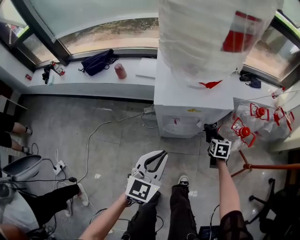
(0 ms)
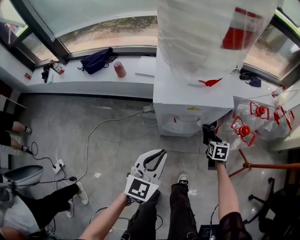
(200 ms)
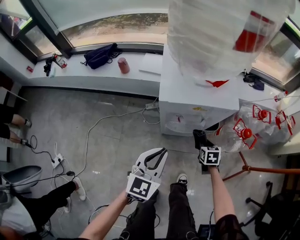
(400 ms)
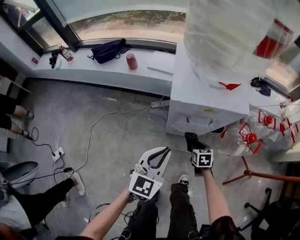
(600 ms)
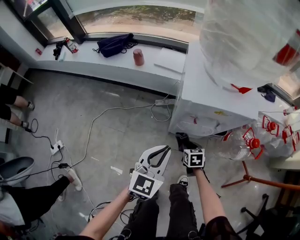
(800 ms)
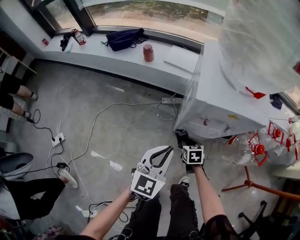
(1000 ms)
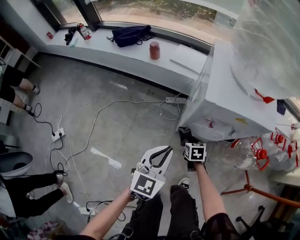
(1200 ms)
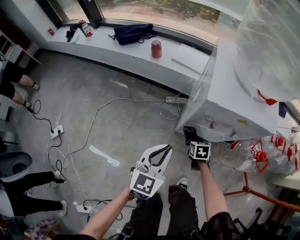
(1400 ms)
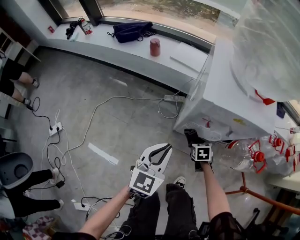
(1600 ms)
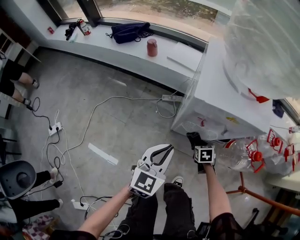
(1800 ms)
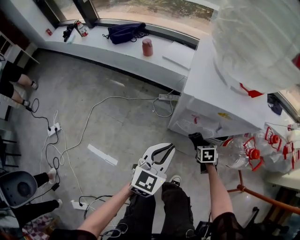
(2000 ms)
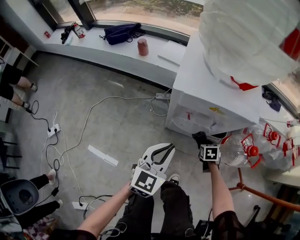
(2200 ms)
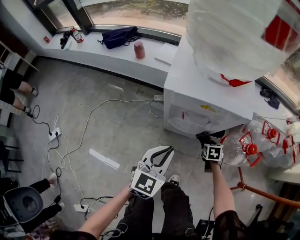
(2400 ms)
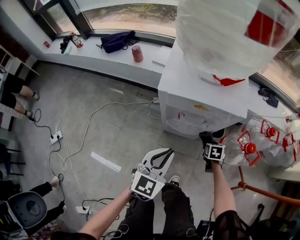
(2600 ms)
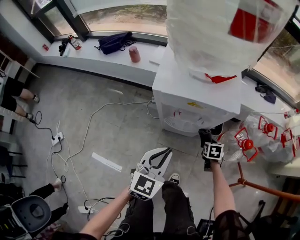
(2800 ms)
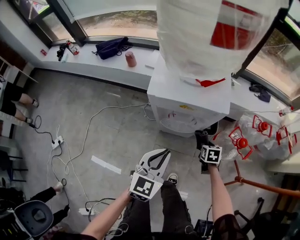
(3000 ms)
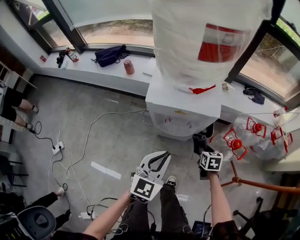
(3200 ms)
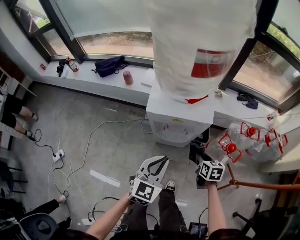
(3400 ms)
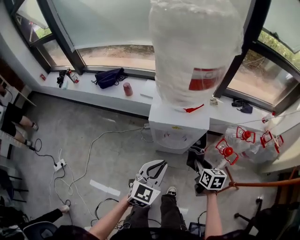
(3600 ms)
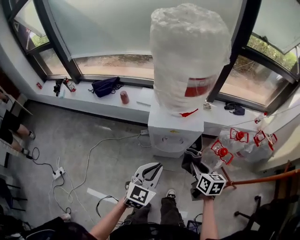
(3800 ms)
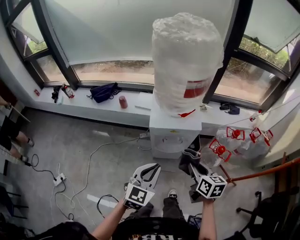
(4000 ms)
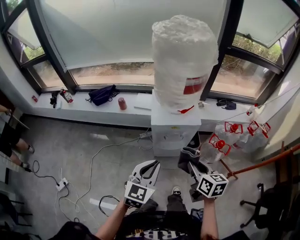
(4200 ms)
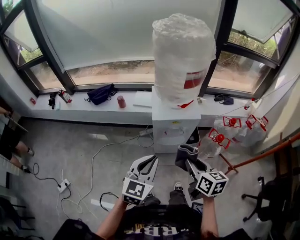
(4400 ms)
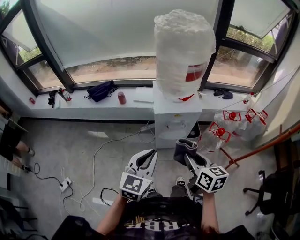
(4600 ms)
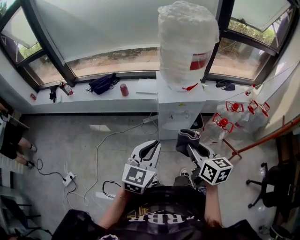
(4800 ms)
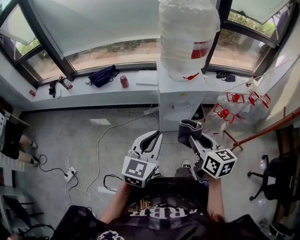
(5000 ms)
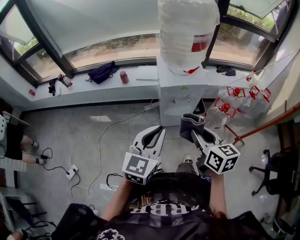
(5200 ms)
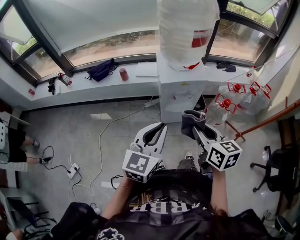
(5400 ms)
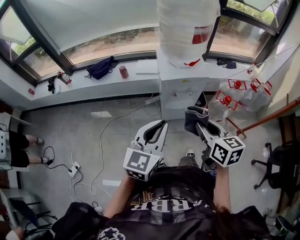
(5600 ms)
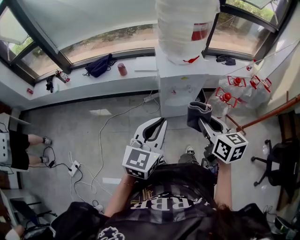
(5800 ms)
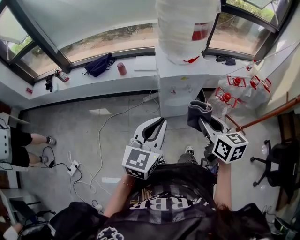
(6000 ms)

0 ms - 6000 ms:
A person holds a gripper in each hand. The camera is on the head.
0 ms - 1600 ms: The left gripper moves downward and to the left, about 10 cm, while the right gripper moves to the left and downward, some 25 cm, and rotates about 30 degrees.
1600 ms - 3000 ms: Both grippers travel together to the right and upward, roughly 20 cm.
3000 ms - 4400 ms: The left gripper shifts about 30 cm upward, to the left and backward; the right gripper moves upward and backward, about 50 cm, and points its fingers about 30 degrees further upward.
4400 ms - 6000 ms: The right gripper ends up some 5 cm from where it was. Meanwhile the left gripper ends up some 5 cm from where it was.

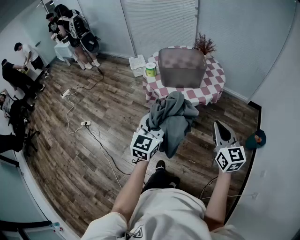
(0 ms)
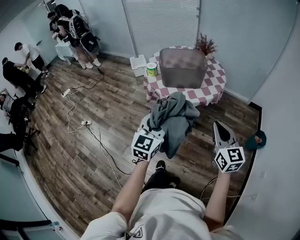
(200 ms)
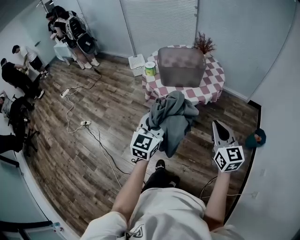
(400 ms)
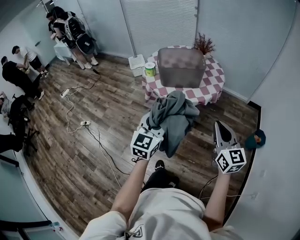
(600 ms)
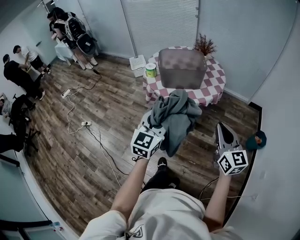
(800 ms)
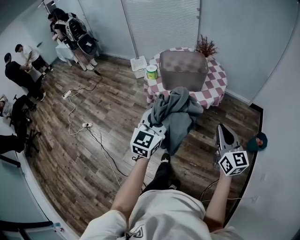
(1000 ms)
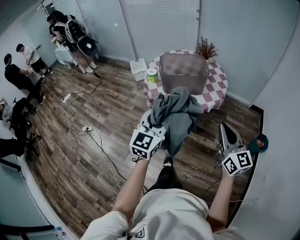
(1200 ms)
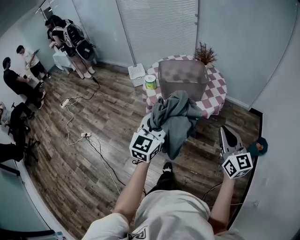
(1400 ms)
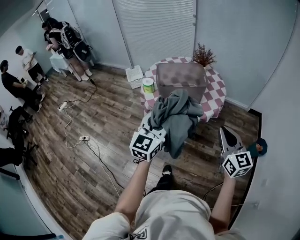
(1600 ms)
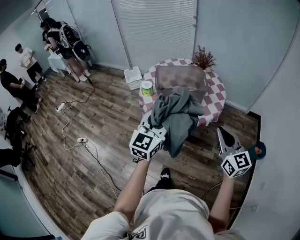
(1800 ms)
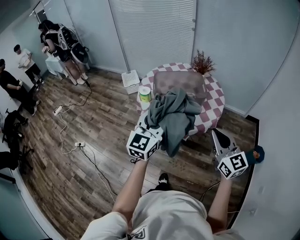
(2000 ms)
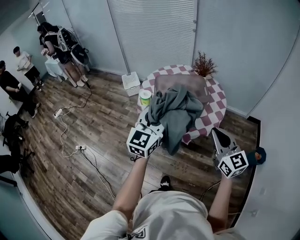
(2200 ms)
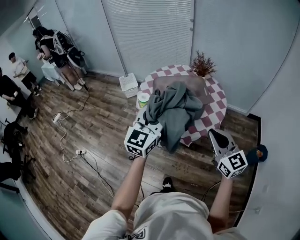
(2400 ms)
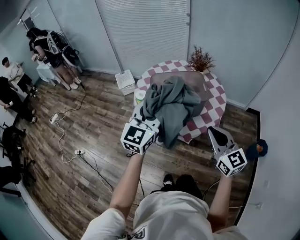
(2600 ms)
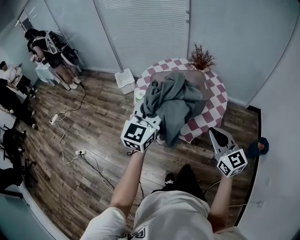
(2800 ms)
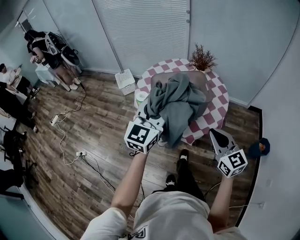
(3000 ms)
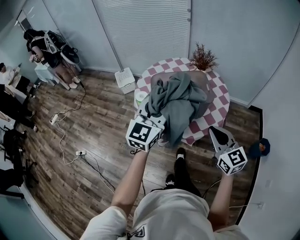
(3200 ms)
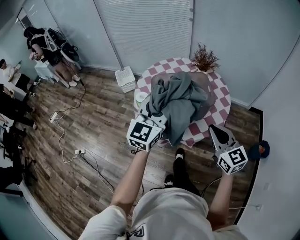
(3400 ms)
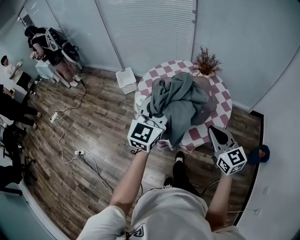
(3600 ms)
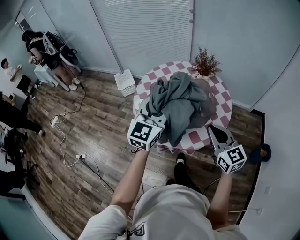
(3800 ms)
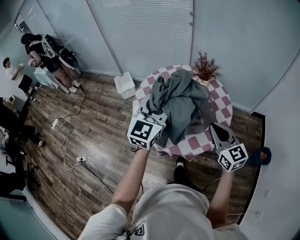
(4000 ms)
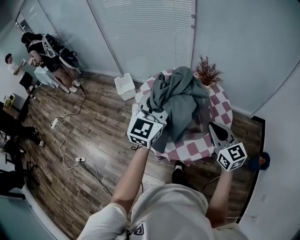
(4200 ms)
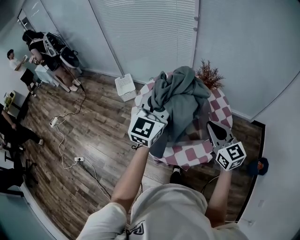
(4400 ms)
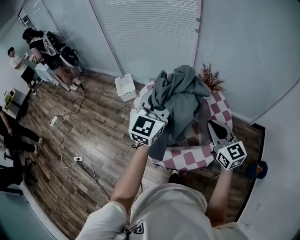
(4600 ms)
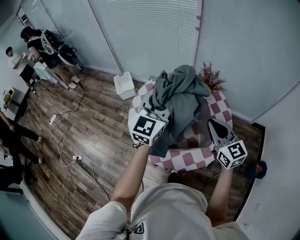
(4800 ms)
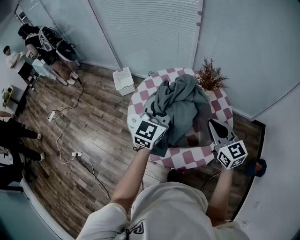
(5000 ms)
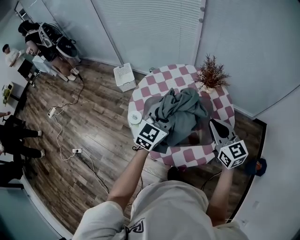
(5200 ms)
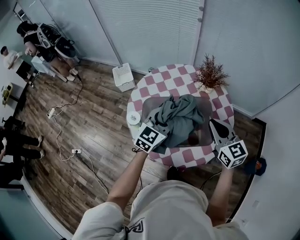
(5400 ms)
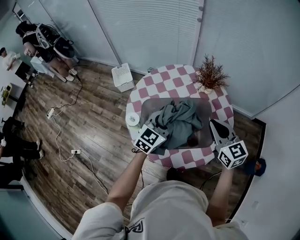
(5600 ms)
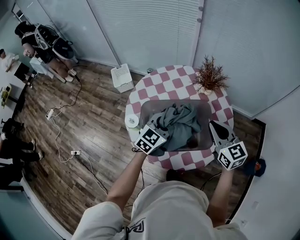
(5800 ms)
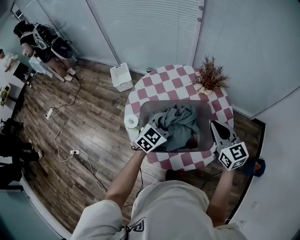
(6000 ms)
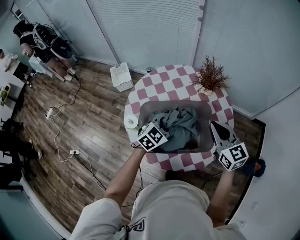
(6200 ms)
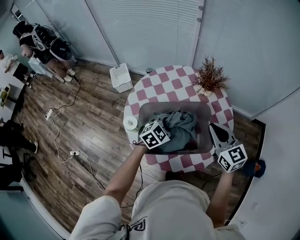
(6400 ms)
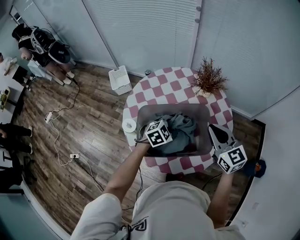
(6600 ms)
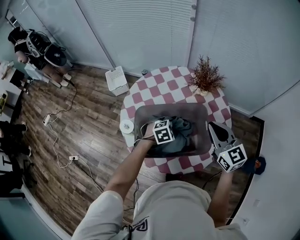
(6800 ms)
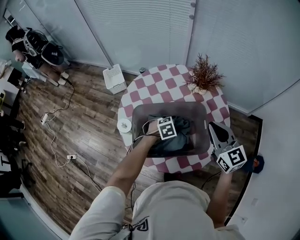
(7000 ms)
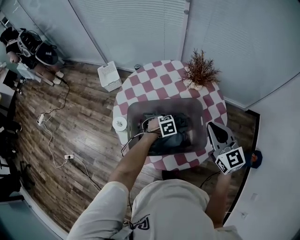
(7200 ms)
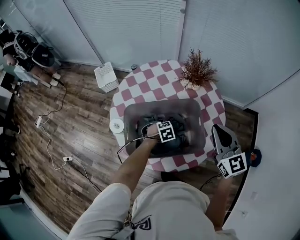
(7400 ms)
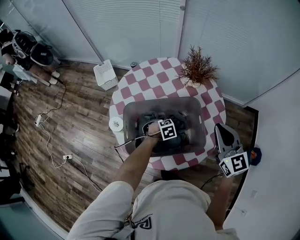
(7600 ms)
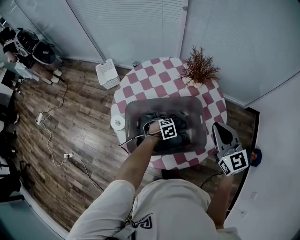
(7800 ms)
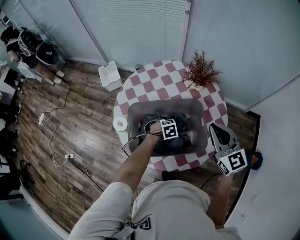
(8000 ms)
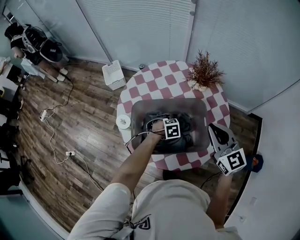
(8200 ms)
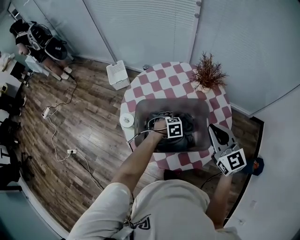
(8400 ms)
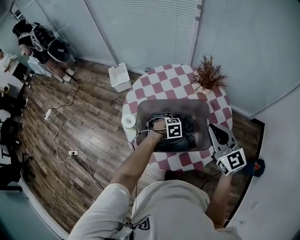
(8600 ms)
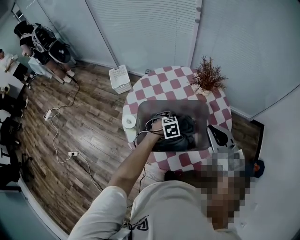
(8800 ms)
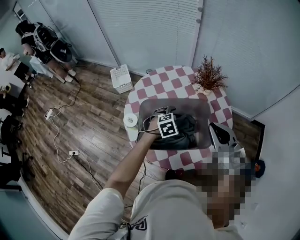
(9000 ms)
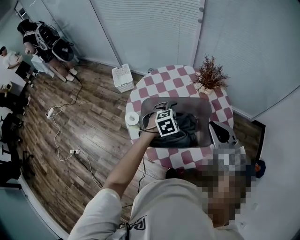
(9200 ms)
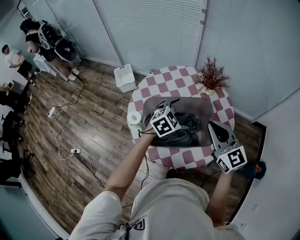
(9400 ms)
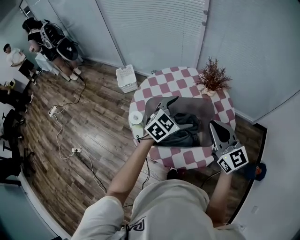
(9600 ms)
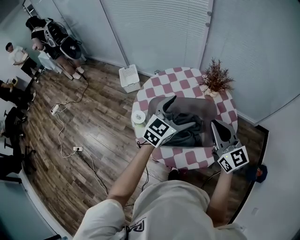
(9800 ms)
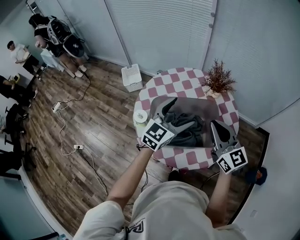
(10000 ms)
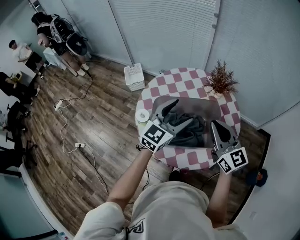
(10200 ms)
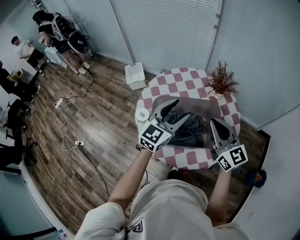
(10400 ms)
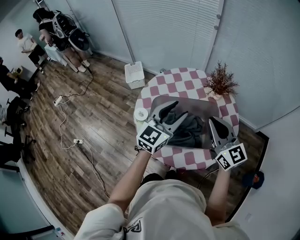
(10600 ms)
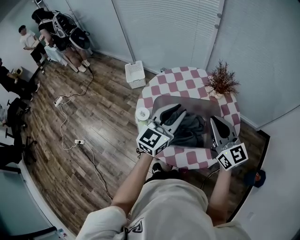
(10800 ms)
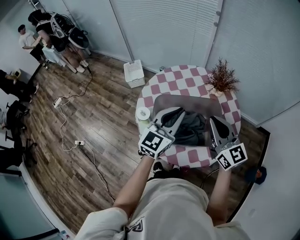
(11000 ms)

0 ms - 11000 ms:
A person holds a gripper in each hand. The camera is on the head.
0 ms - 1600 ms: The right gripper heads forward, covering approximately 10 cm, while the left gripper goes roughly 15 cm forward and upward.
1600 ms - 3200 ms: Both grippers travel together forward, approximately 20 cm.
3200 ms - 4800 ms: The two grippers go roughly 25 cm forward.
4800 ms - 6200 ms: The left gripper moves downward, approximately 25 cm, and tips its fingers downward by roughly 30 degrees. The right gripper is displaced downward by about 5 cm.
6200 ms - 7800 ms: The left gripper is displaced downward by roughly 25 cm, and tilts its fingers approximately 40 degrees downward.
7800 ms - 9400 ms: The left gripper moves upward, some 25 cm, swivels roughly 30 degrees, and opens its fingers, while the right gripper moves backward and to the left, roughly 10 cm.
9400 ms - 11000 ms: The left gripper shifts about 15 cm upward and to the left, points its fingers about 40 degrees further upward, and closes up.

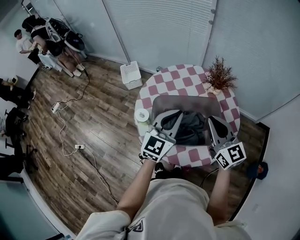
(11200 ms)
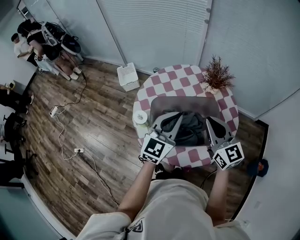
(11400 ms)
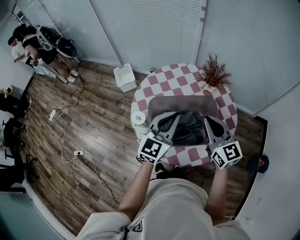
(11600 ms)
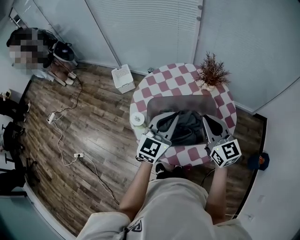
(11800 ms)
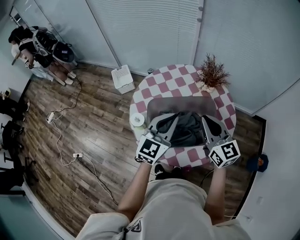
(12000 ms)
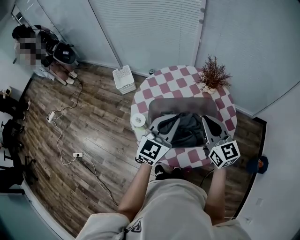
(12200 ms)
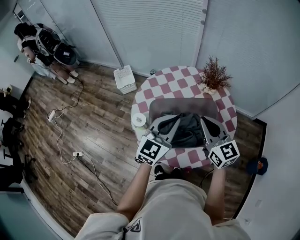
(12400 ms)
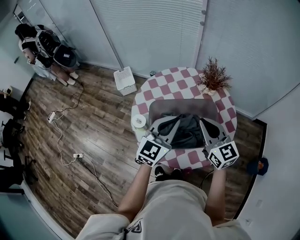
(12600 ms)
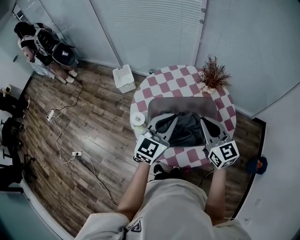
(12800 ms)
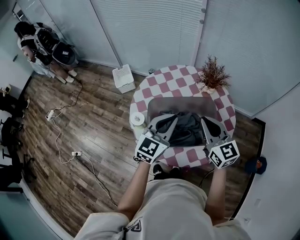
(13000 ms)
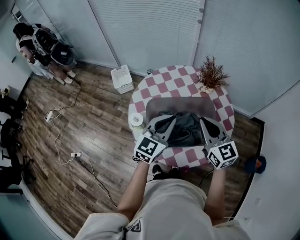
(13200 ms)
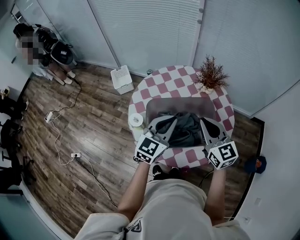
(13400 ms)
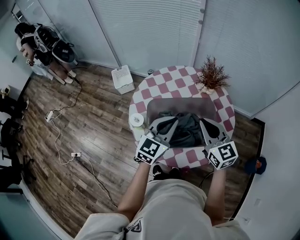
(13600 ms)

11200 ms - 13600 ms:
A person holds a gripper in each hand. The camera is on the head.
11200 ms - 13600 ms: The grippers make only small movements.

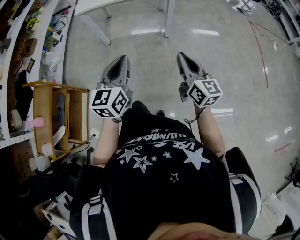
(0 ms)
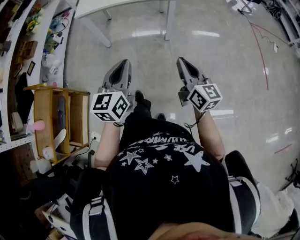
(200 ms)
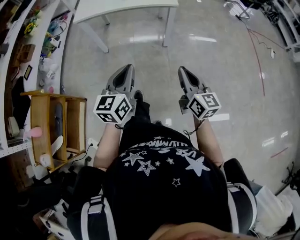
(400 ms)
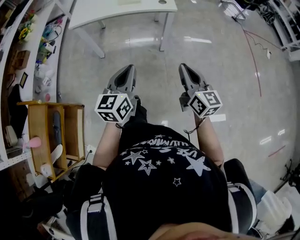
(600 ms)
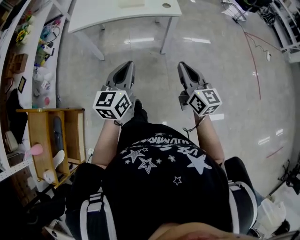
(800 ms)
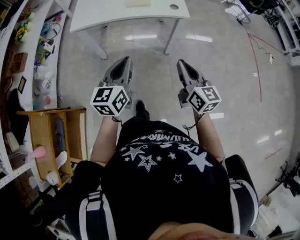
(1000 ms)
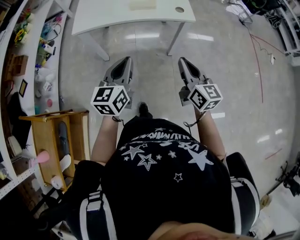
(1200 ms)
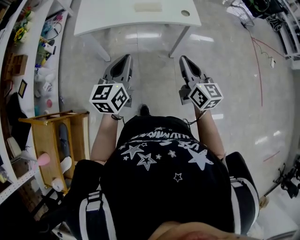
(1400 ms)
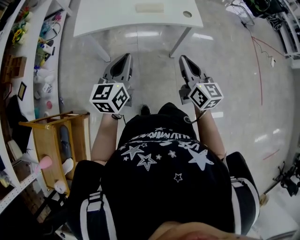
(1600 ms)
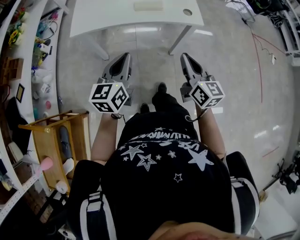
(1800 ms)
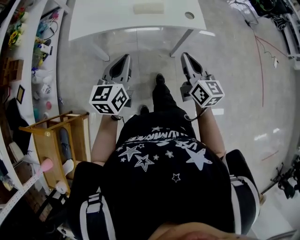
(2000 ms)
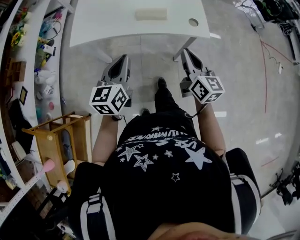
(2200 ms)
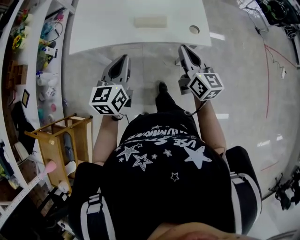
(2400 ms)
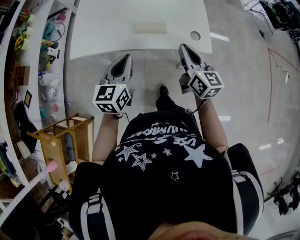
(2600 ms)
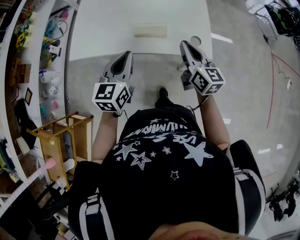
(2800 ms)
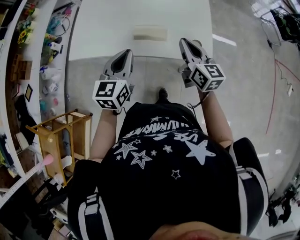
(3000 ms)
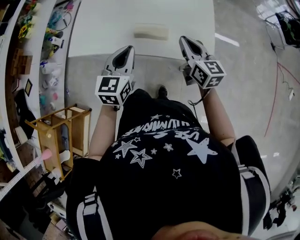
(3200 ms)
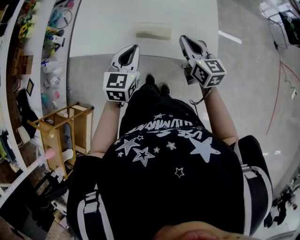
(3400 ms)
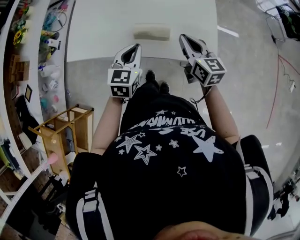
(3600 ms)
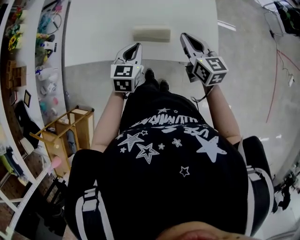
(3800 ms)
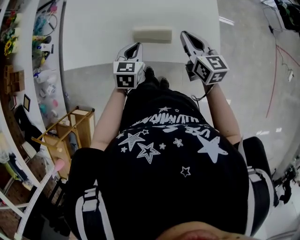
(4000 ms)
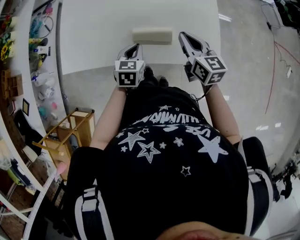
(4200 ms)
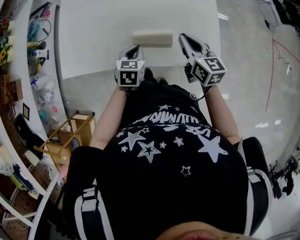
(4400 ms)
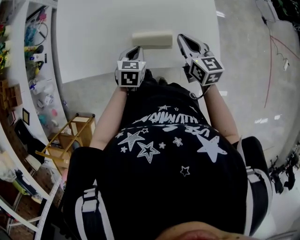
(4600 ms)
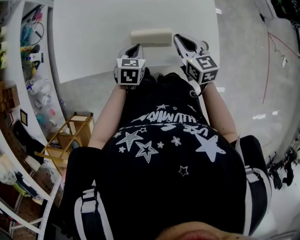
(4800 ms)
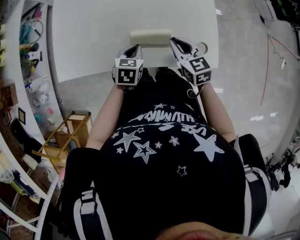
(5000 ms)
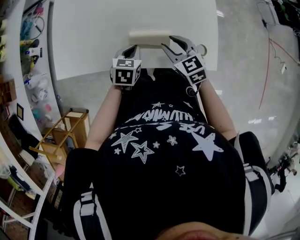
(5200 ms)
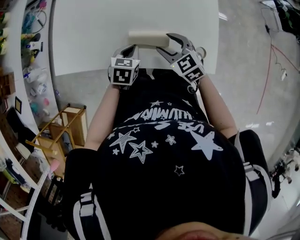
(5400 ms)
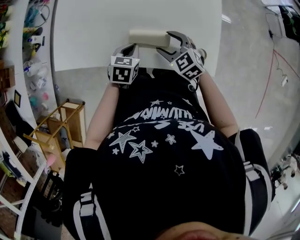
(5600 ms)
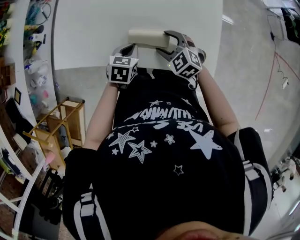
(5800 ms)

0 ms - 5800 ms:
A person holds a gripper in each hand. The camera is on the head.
0 ms - 1400 ms: Both grippers travel together forward, about 30 cm.
1400 ms - 2800 ms: Both grippers move forward, roughly 30 cm.
2800 ms - 4400 ms: The left gripper shifts approximately 25 cm downward and forward, and swivels approximately 30 degrees; the right gripper moves forward and downward, approximately 15 cm.
4400 ms - 5800 ms: The right gripper heads downward and to the left, covering roughly 10 cm, rotates around the line of its fingers by some 50 degrees, counterclockwise from behind, and opens its fingers.
